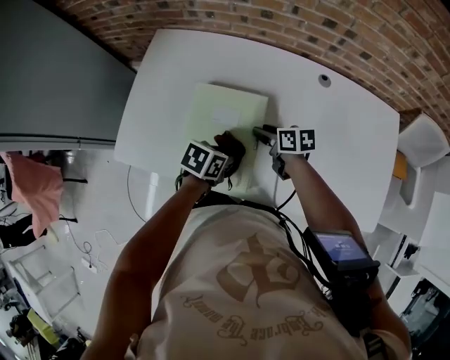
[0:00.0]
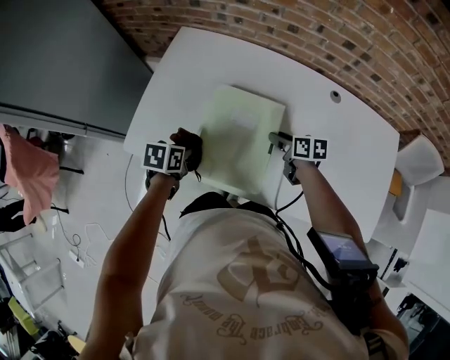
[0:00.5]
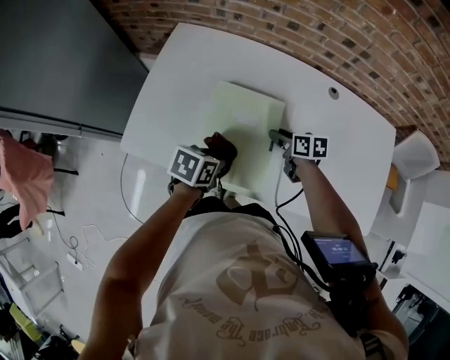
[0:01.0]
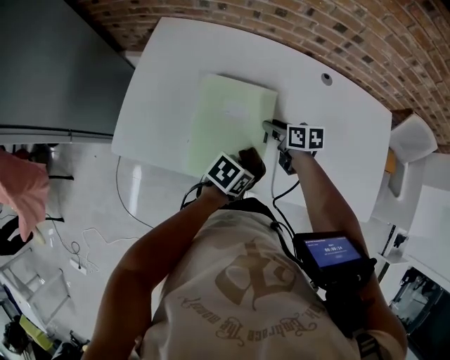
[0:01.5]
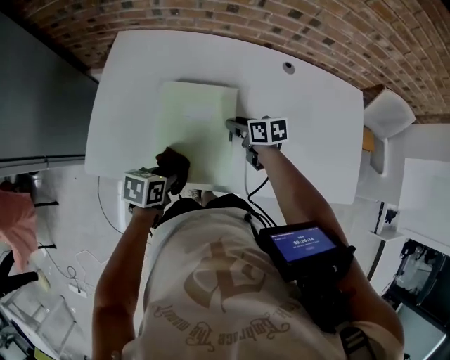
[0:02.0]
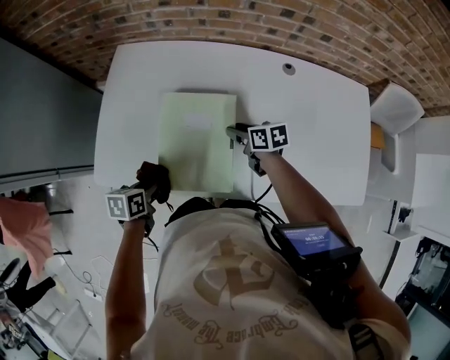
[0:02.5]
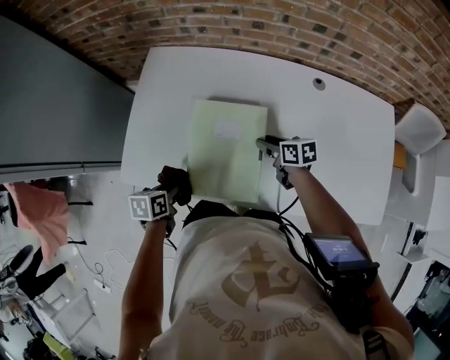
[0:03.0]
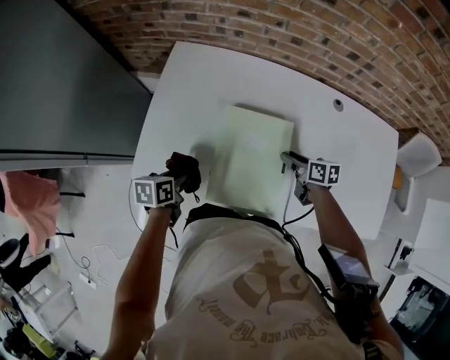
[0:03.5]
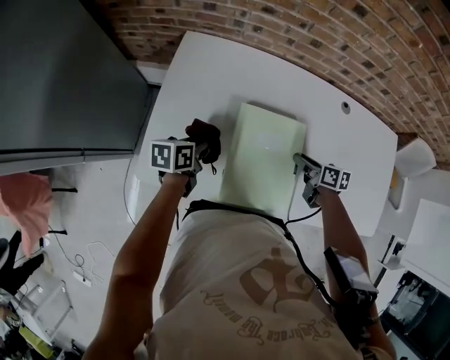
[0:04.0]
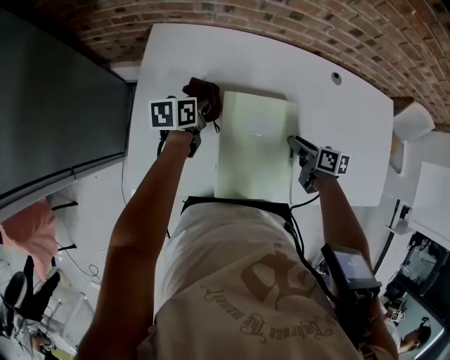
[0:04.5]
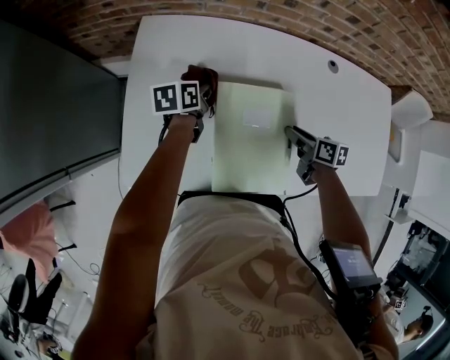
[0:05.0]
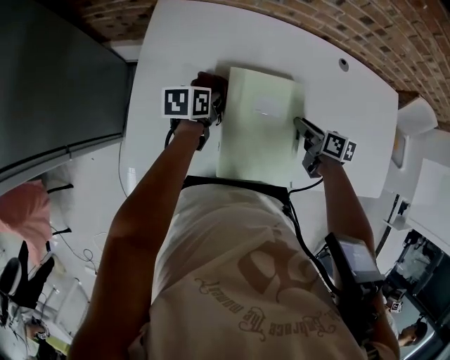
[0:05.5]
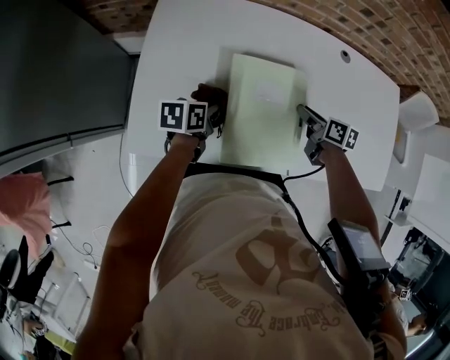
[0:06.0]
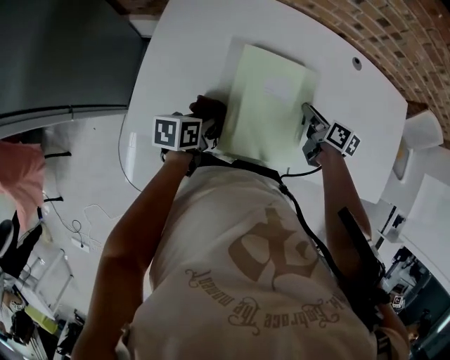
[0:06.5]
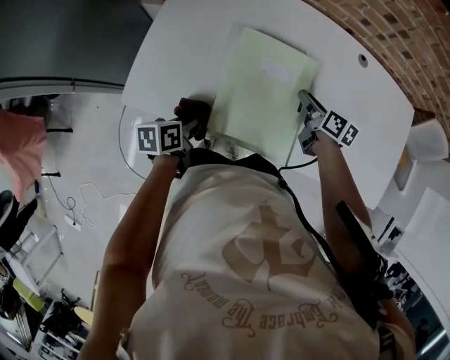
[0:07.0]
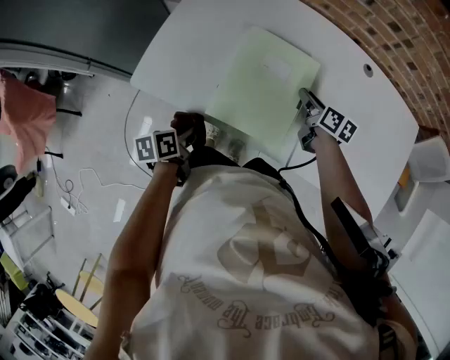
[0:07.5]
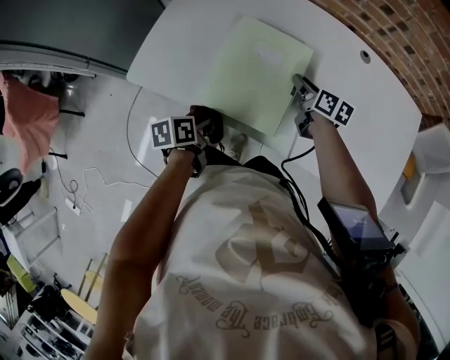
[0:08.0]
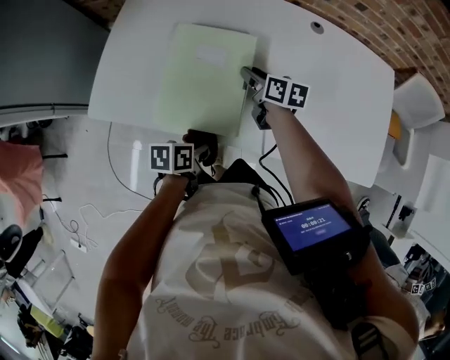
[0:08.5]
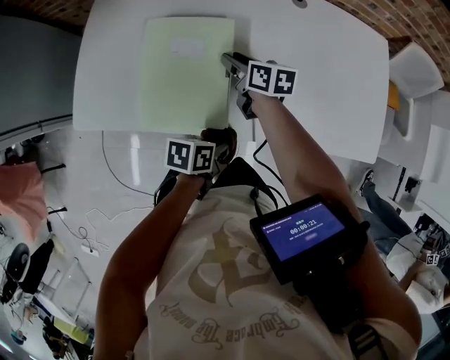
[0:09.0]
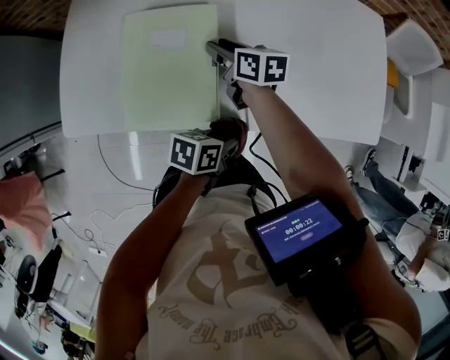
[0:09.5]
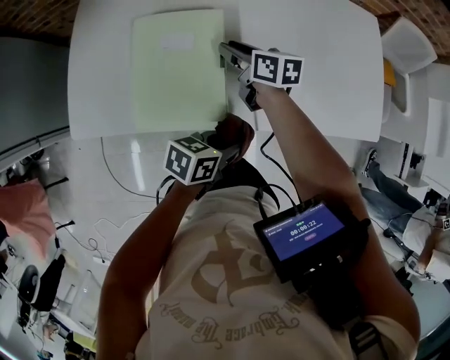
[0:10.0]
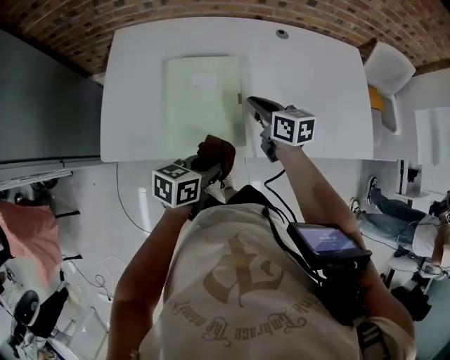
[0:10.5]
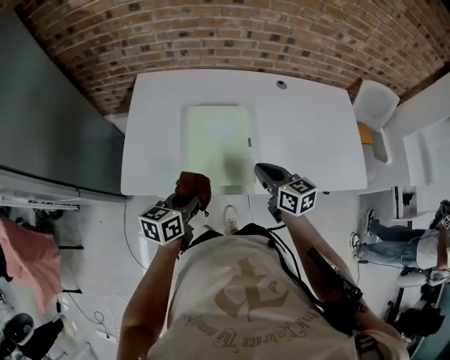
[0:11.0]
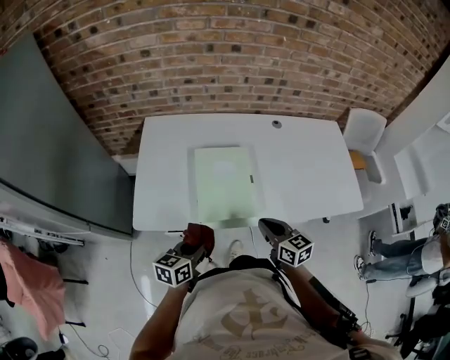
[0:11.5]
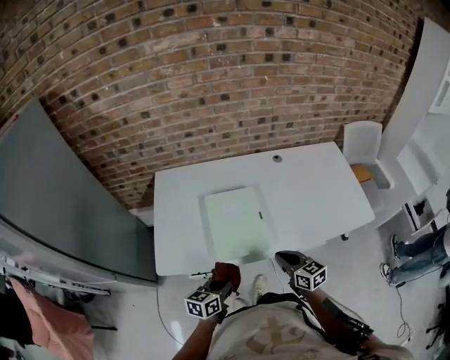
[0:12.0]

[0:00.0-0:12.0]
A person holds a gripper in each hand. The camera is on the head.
0:02.0 to 0:04.0: The left gripper travels forward and to the left by roughly 20 cm.
0:04.0 to 0:06.0: The left gripper moves to the right, some 5 cm, and goes forward and returns, some 15 cm each way.
0:06.0 to 0:08.0: The left gripper heads backward, covering approximately 20 cm, and swivels approximately 30 degrees.
0:08.0 to 0:10.0: The left gripper moves approximately 25 cm, and turns by roughly 60 degrees.
0:10.0 to 0:12.0: The right gripper travels backward and upward by roughly 30 cm, changes its angle by about 20 degrees, and closes. Meanwhile the left gripper goes some 20 cm to the left, and turns by about 30 degrees.

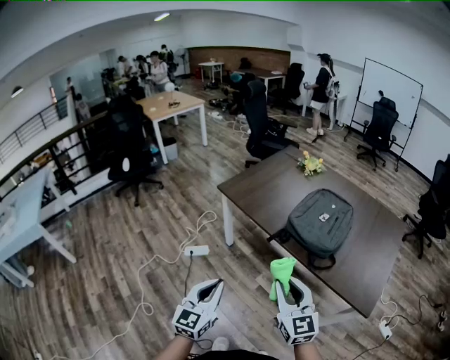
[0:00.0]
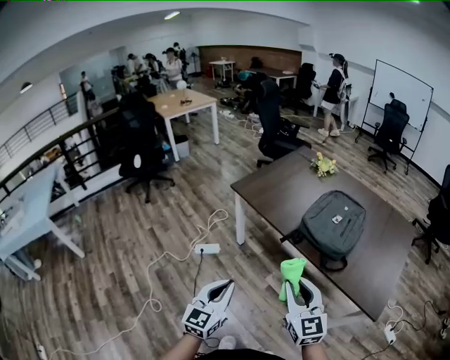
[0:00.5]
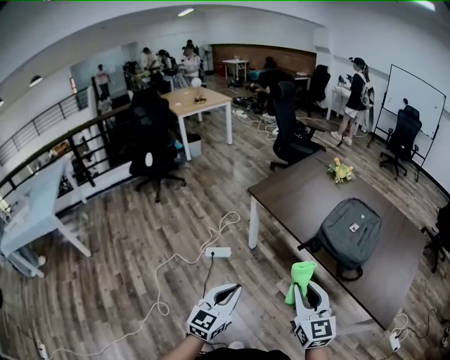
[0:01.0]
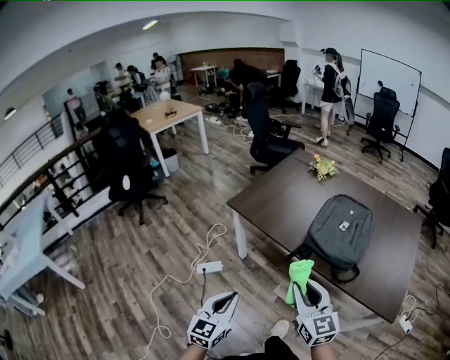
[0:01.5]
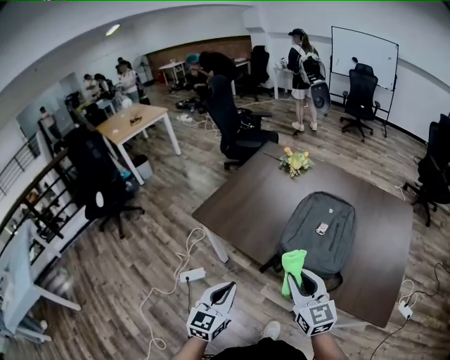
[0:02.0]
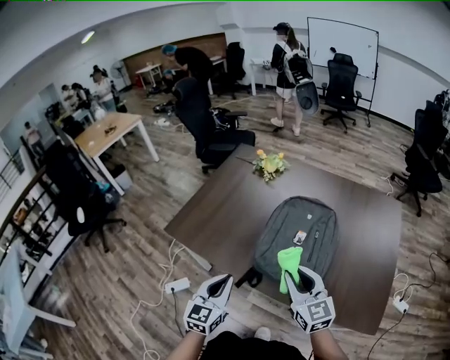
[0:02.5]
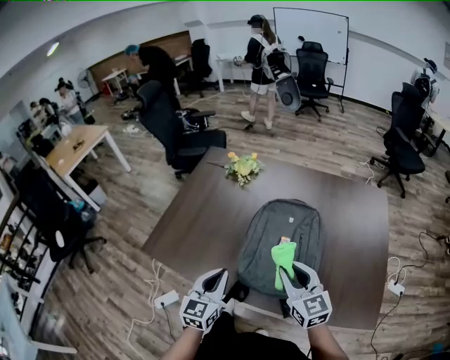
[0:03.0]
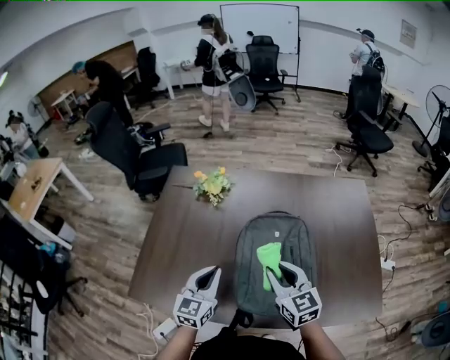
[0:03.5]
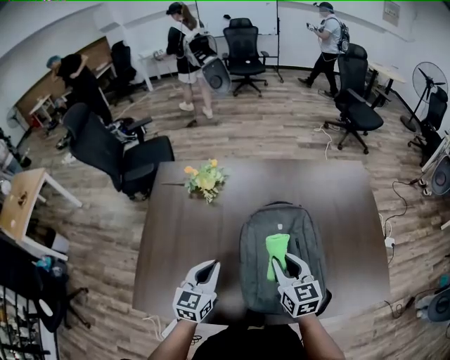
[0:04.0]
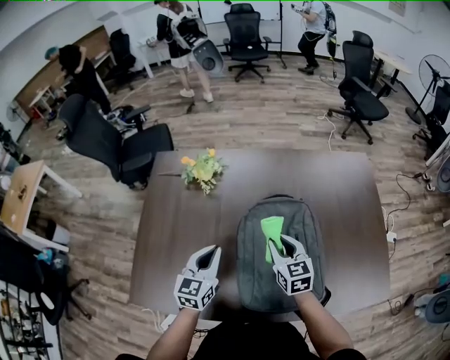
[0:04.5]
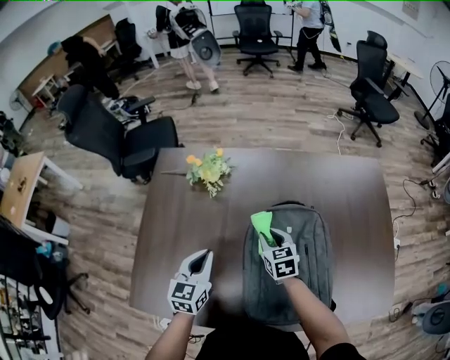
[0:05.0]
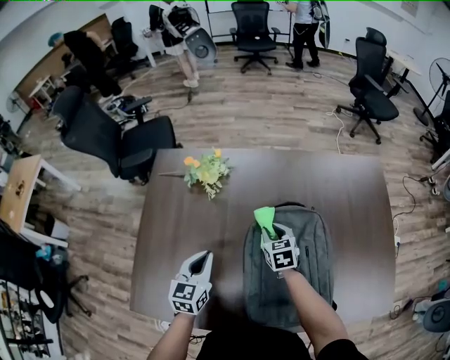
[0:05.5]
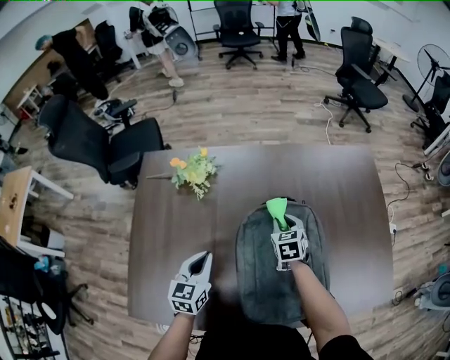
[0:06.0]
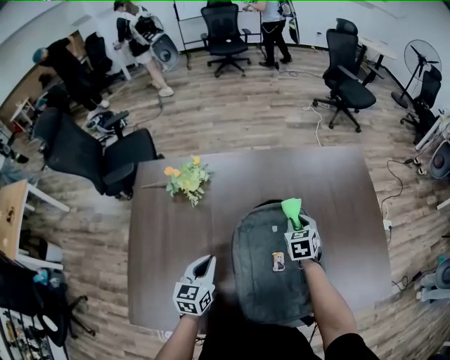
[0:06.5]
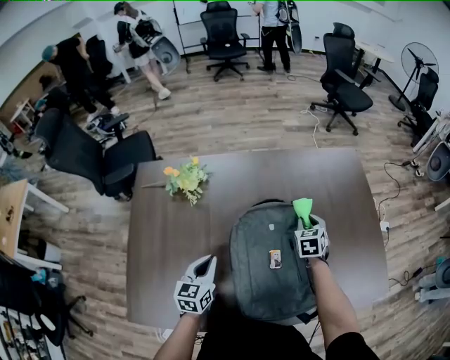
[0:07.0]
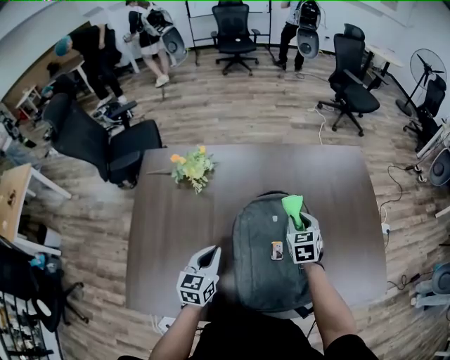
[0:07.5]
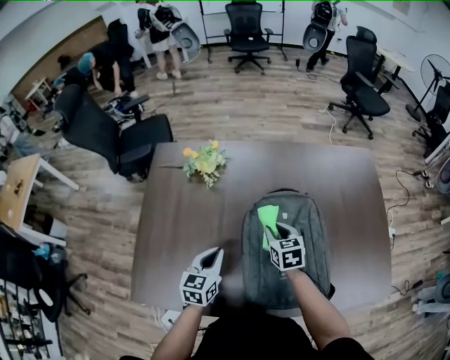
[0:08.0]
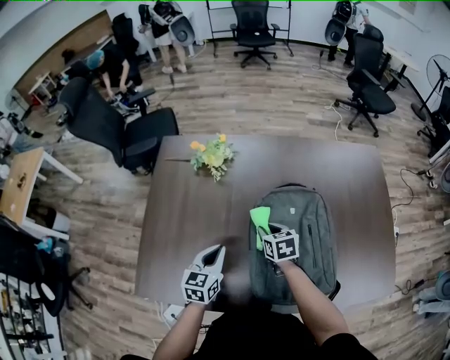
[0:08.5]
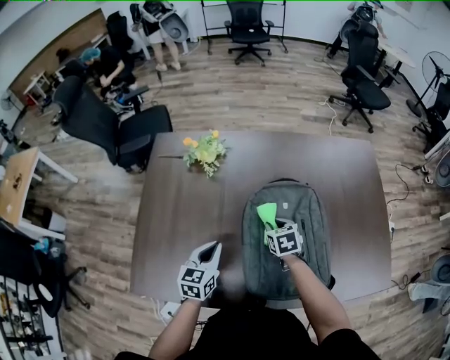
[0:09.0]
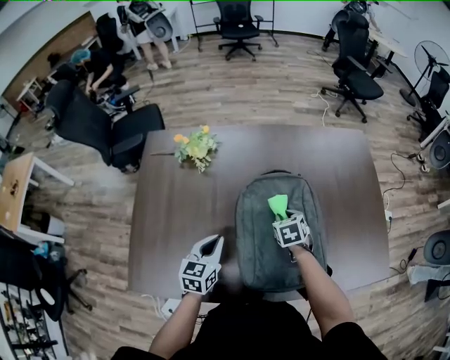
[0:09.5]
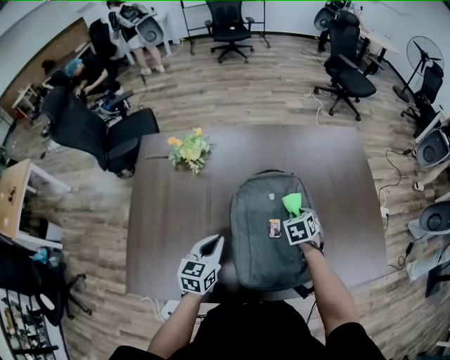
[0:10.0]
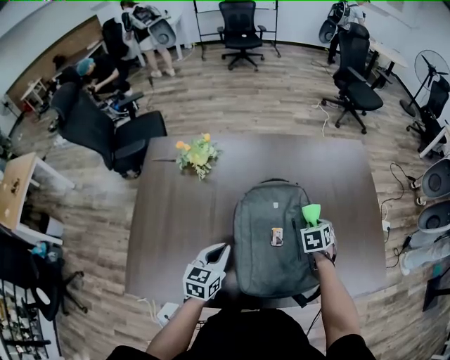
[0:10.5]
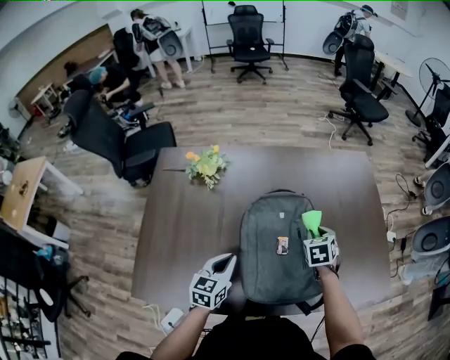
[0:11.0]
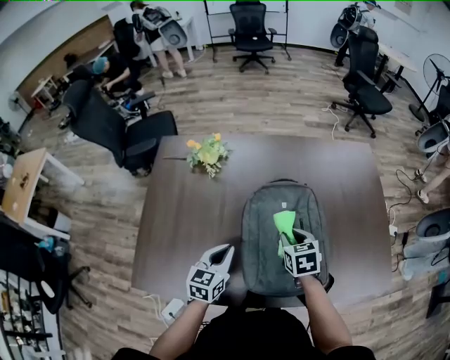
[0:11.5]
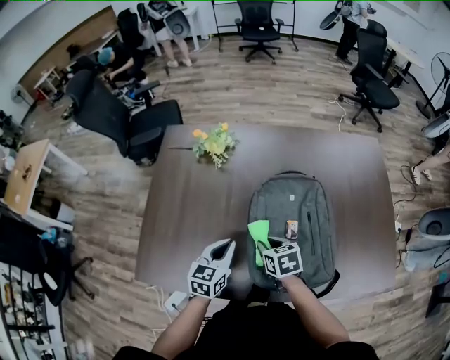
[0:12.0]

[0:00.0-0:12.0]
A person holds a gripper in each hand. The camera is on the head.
0:00.0 to 0:02.0: The grippers both shift forward by approximately 20 cm.
0:02.0 to 0:04.0: The right gripper shifts by some 30 cm, and rotates approximately 40 degrees. Meanwhile the left gripper moves some 40 cm, and turns by approximately 30 degrees.
0:04.0 to 0:06.0: The right gripper goes about 20 cm forward and downward, and rotates roughly 30 degrees, while the left gripper moves forward and downward, about 10 cm.
0:06.0 to 0:08.0: The right gripper moves backward, roughly 10 cm, and reaches approximately 15 cm to the right, then returns.
0:08.0 to 0:10.0: The right gripper heads to the right, covering about 15 cm, and changes its angle by roughly 30 degrees.
0:10.0 to 0:12.0: The right gripper moves roughly 20 cm, and changes its angle by some 30 degrees.

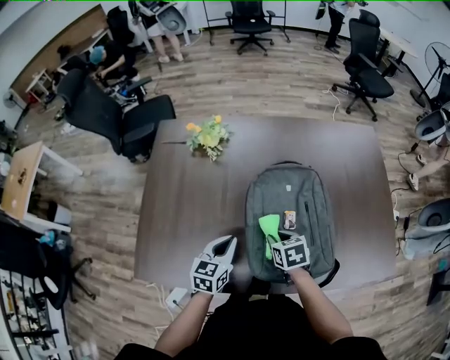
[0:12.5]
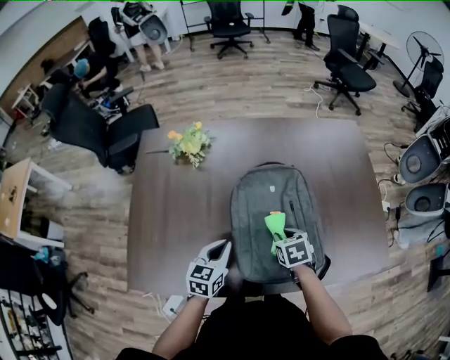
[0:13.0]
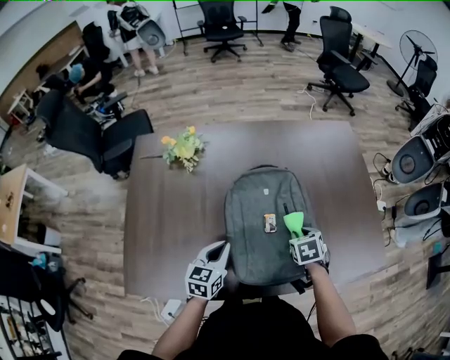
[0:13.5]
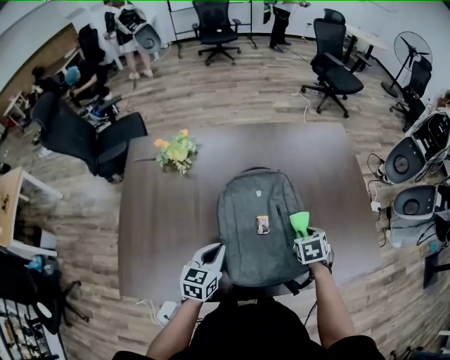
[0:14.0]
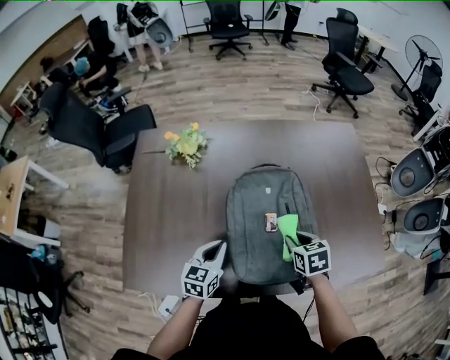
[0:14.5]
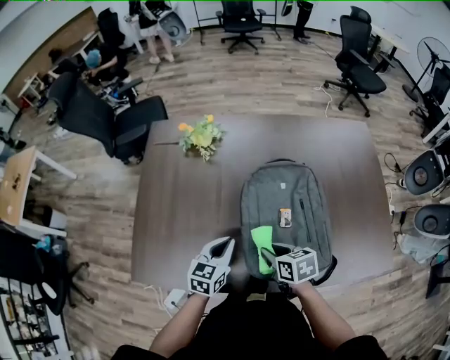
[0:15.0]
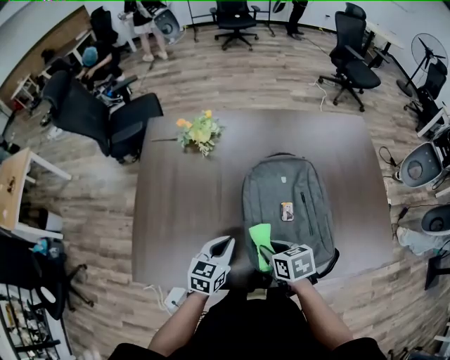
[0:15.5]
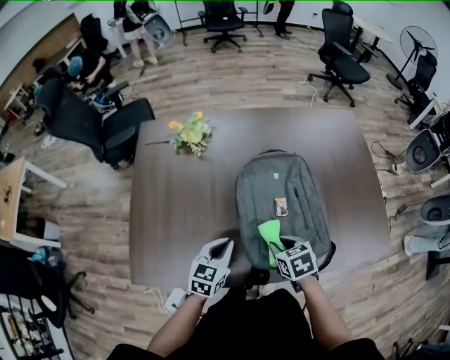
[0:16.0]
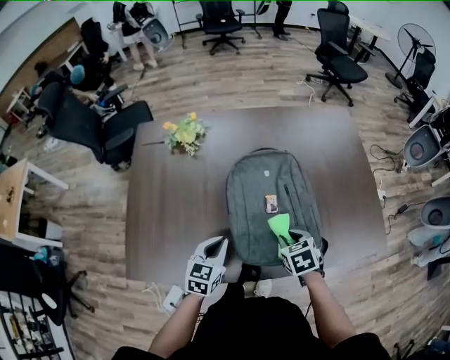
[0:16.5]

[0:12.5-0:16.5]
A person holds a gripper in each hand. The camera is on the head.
0:12.5 to 0:14.5: The right gripper shifts some 10 cm to the right.
0:14.5 to 0:16.5: The right gripper goes some 5 cm backward, and reaches about 15 cm to the left, then returns.
